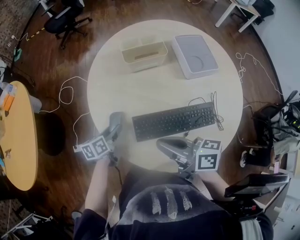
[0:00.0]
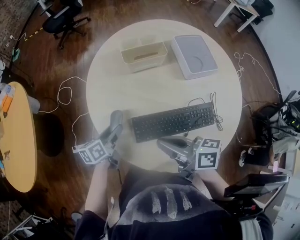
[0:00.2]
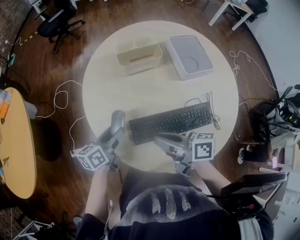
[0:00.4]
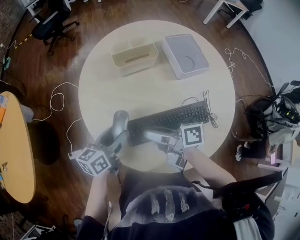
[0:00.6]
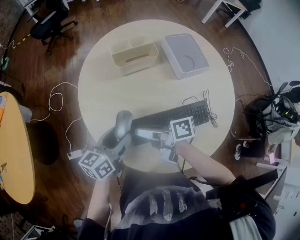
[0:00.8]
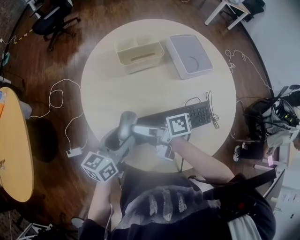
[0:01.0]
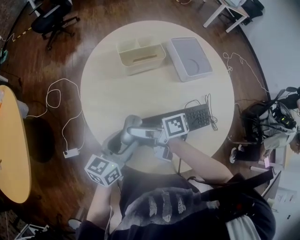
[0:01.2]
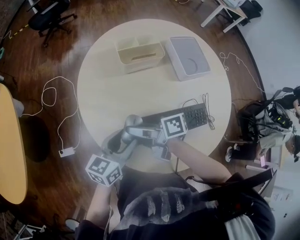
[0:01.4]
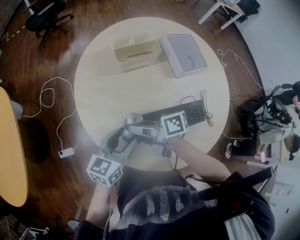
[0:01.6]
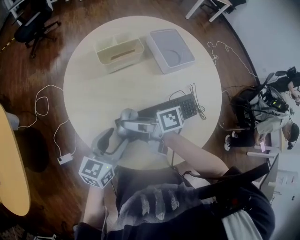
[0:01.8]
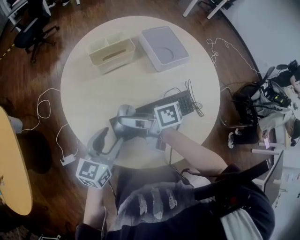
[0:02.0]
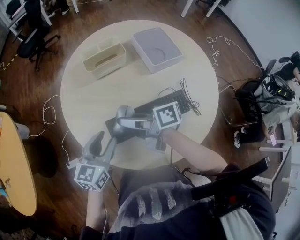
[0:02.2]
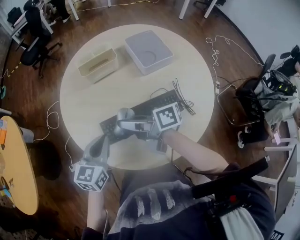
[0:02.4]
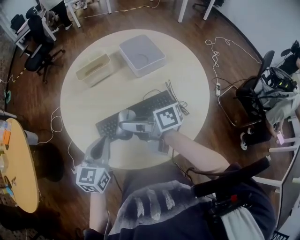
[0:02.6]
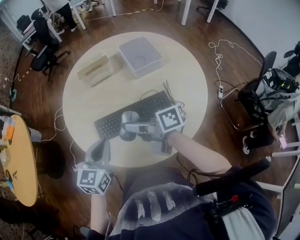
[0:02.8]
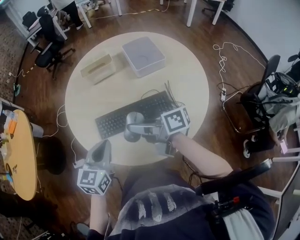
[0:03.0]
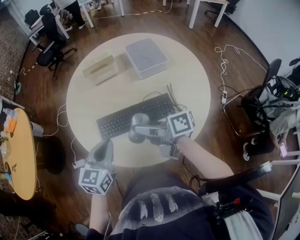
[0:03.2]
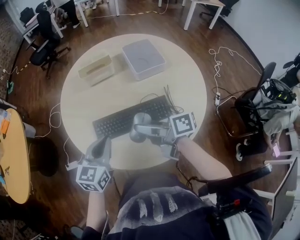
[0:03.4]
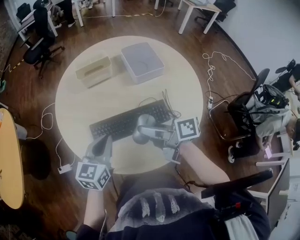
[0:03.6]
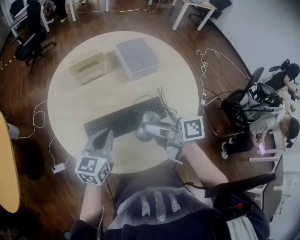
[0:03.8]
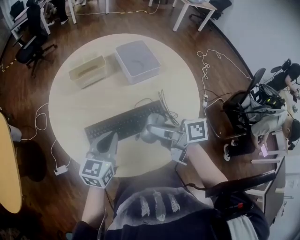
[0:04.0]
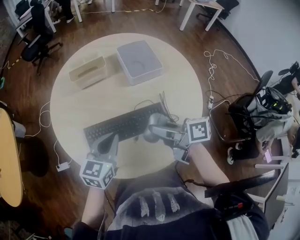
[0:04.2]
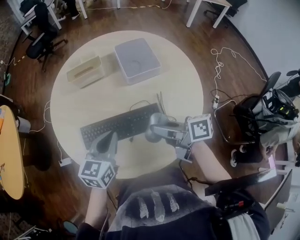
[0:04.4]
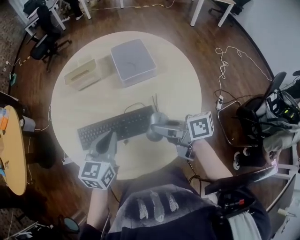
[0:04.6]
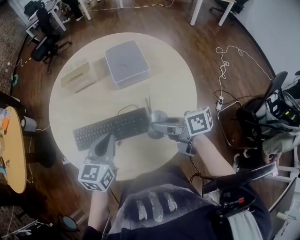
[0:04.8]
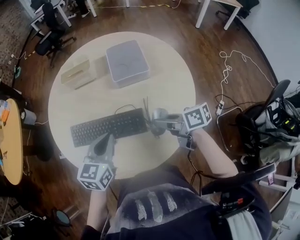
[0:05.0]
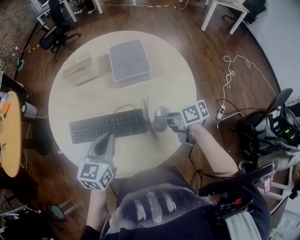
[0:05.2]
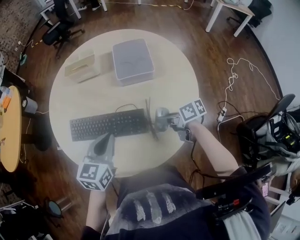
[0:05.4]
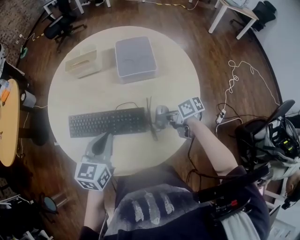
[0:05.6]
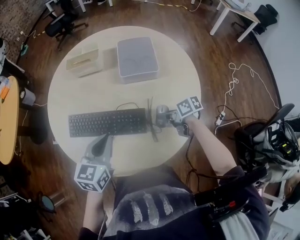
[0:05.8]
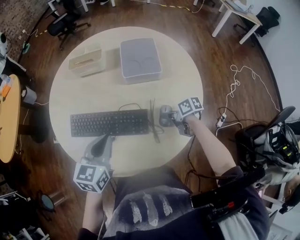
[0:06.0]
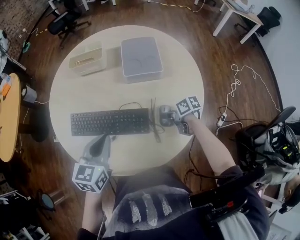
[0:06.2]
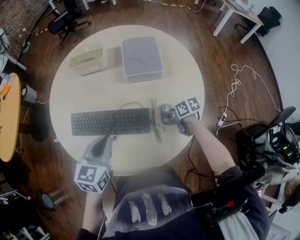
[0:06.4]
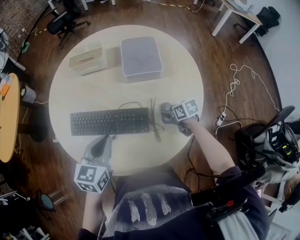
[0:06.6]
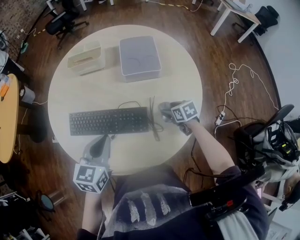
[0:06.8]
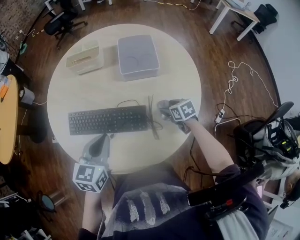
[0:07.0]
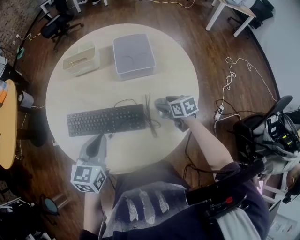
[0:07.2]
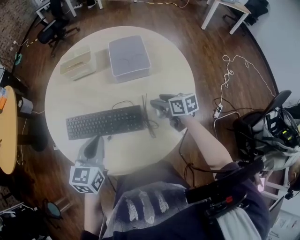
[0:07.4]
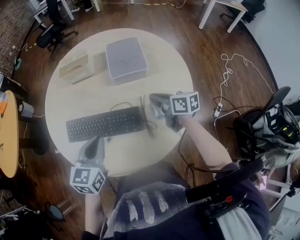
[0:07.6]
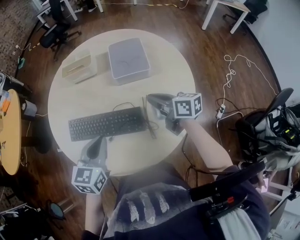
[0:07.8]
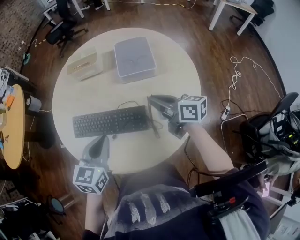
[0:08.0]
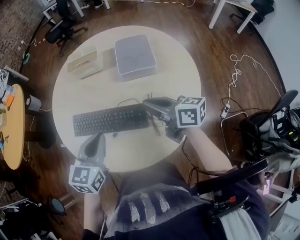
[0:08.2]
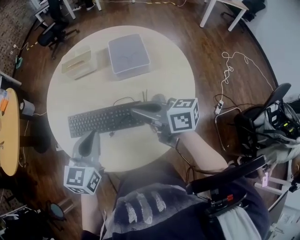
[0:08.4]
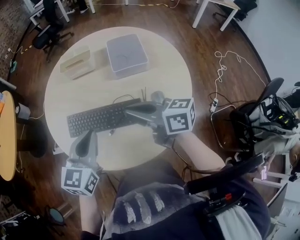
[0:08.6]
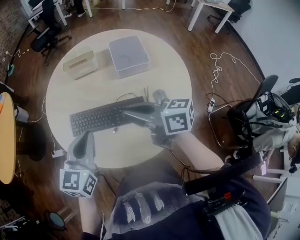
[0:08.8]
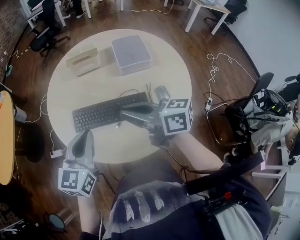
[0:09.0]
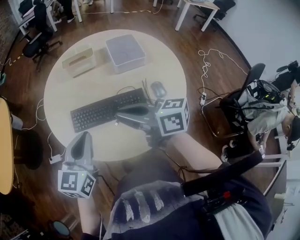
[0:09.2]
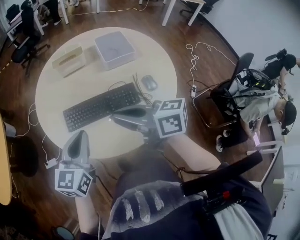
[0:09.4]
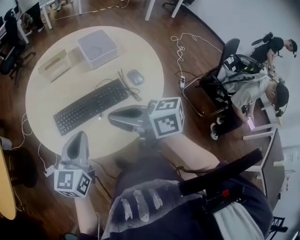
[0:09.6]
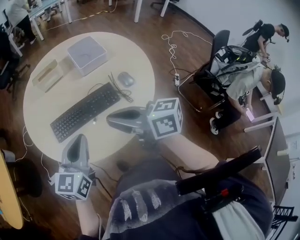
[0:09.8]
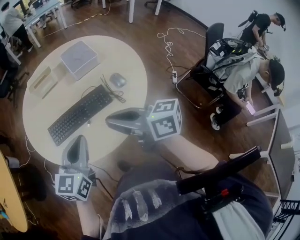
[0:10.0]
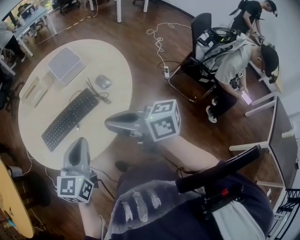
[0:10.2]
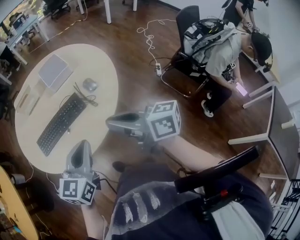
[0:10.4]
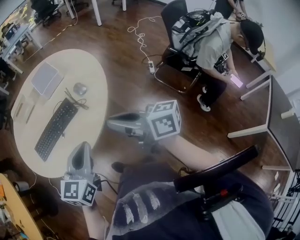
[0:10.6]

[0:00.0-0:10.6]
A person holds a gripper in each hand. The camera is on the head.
0:00.0 to 0:01.6: The right gripper heads forward, downward and to the left, covering some 15 cm, rotates about 20 degrees, and opens up; the left gripper heads upward and to the right, covering about 15 cm, and swivels some 40 degrees.
0:01.6 to 0:03.0: The right gripper goes some 25 cm to the right, backward and upward, while the left gripper goes approximately 15 cm backward, to the right and upward, changes its angle by some 30 degrees, and closes.
0:03.0 to 0:04.6: Both grippers move to the right, some 20 cm.
0:04.6 to 0:06.0: The right gripper is displaced downward and to the right by some 25 cm, and swivels some 30 degrees.
0:06.0 to 0:07.6: The right gripper goes approximately 10 cm upward, swivels approximately 30 degrees, and closes its fingers.
0:07.6 to 0:09.0: The right gripper shifts approximately 30 cm to the left and upward, and rotates roughly 20 degrees. Meanwhile the left gripper is displaced to the left and upward by roughly 15 cm.
0:09.0 to 0:10.6: The left gripper moves roughly 30 cm, and turns by roughly 30 degrees. Meanwhile the right gripper changes place by some 35 cm, and swivels roughly 30 degrees.

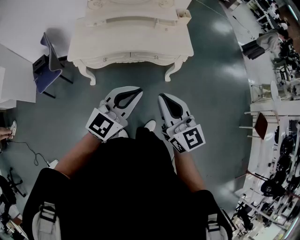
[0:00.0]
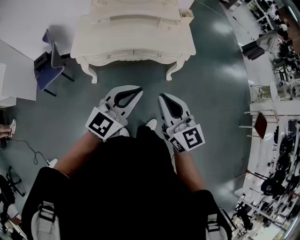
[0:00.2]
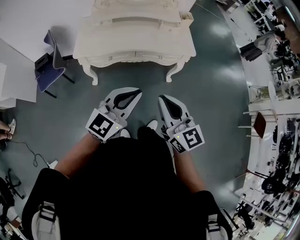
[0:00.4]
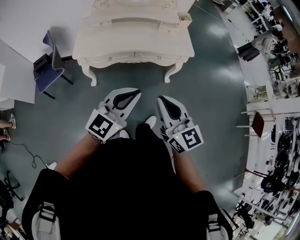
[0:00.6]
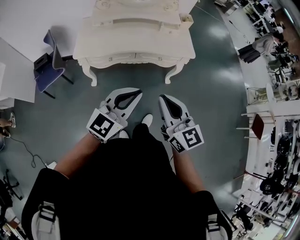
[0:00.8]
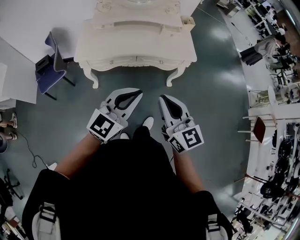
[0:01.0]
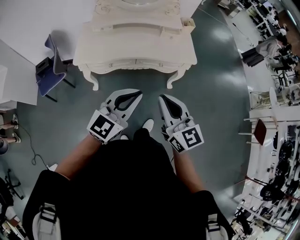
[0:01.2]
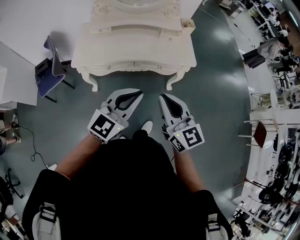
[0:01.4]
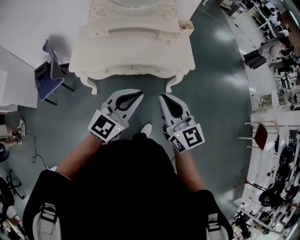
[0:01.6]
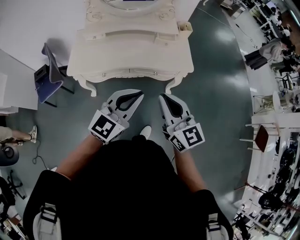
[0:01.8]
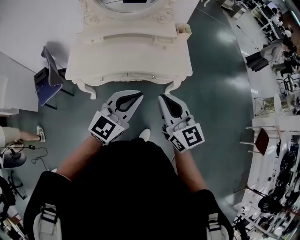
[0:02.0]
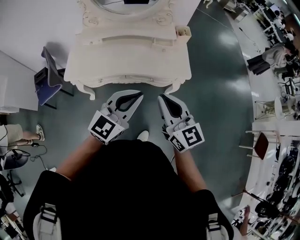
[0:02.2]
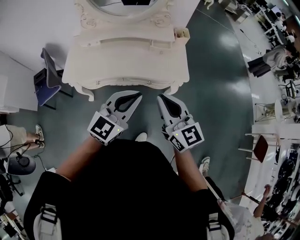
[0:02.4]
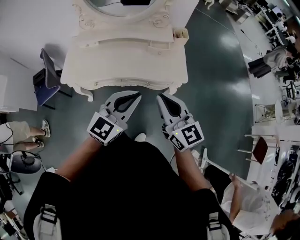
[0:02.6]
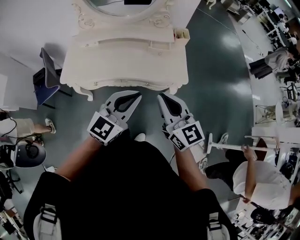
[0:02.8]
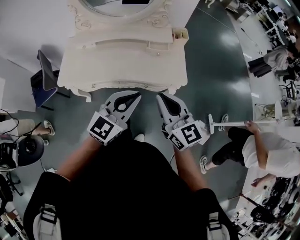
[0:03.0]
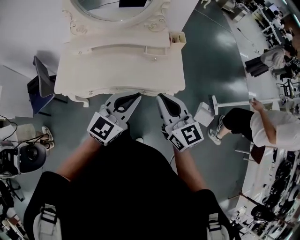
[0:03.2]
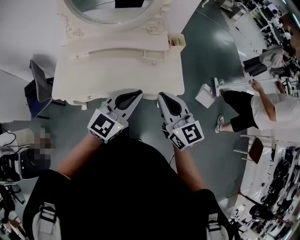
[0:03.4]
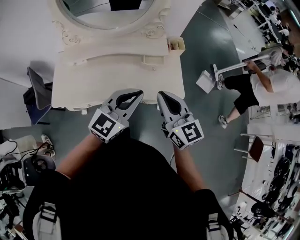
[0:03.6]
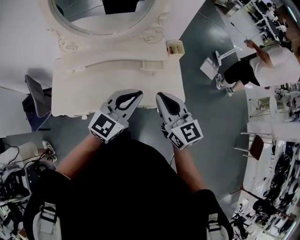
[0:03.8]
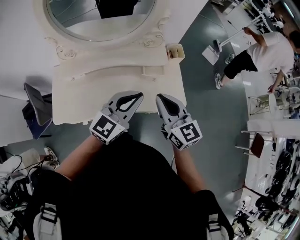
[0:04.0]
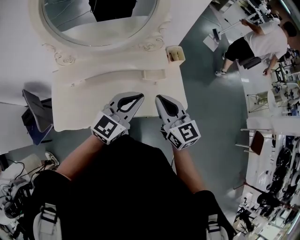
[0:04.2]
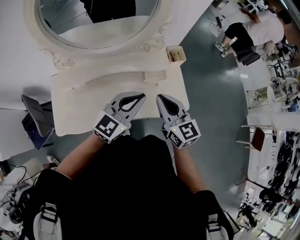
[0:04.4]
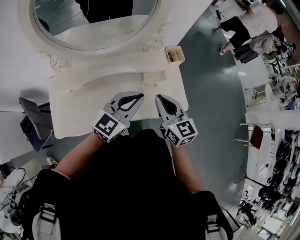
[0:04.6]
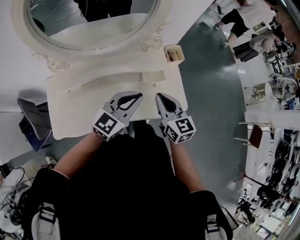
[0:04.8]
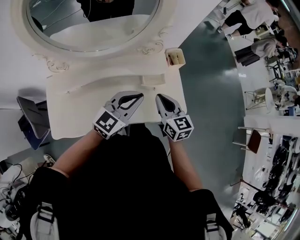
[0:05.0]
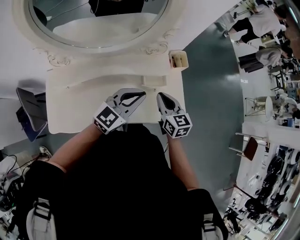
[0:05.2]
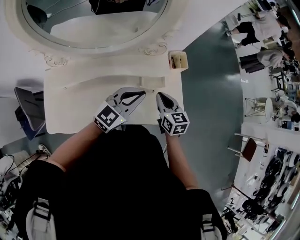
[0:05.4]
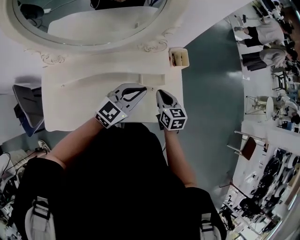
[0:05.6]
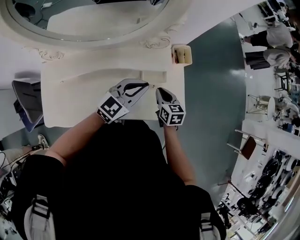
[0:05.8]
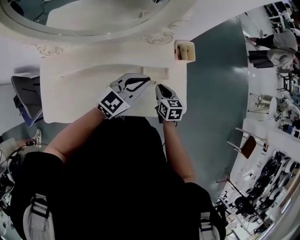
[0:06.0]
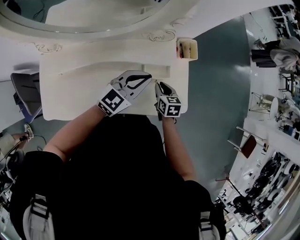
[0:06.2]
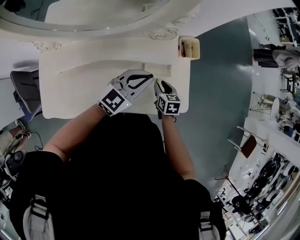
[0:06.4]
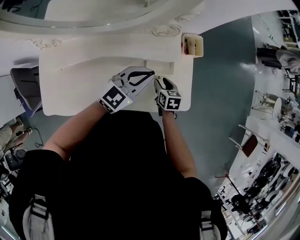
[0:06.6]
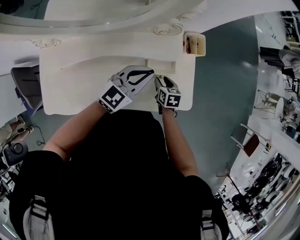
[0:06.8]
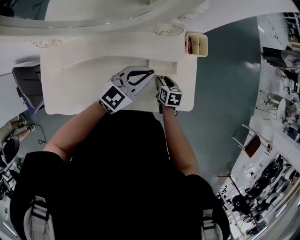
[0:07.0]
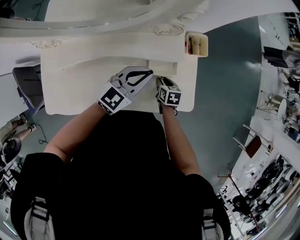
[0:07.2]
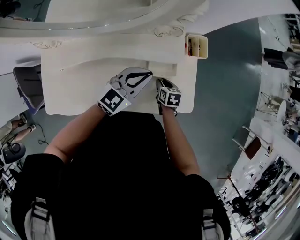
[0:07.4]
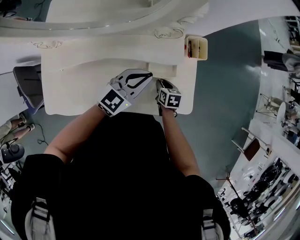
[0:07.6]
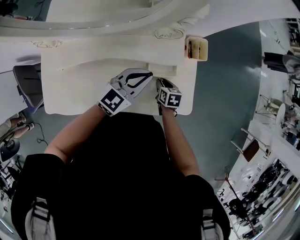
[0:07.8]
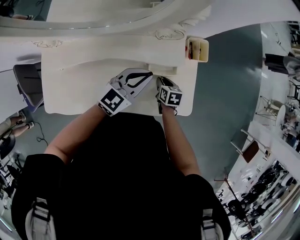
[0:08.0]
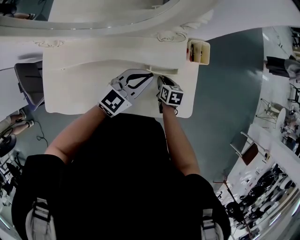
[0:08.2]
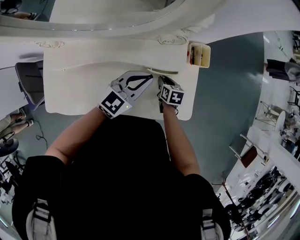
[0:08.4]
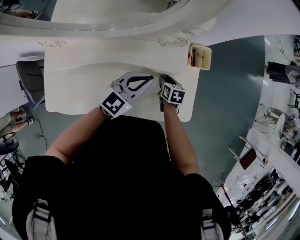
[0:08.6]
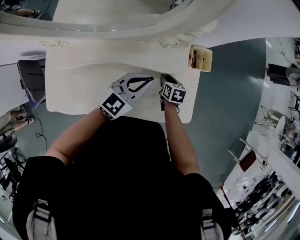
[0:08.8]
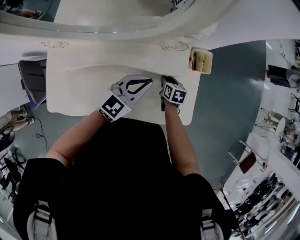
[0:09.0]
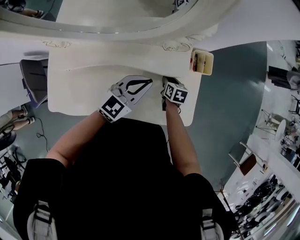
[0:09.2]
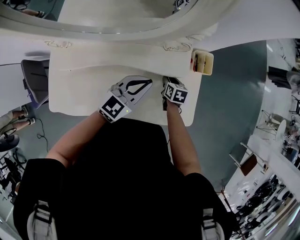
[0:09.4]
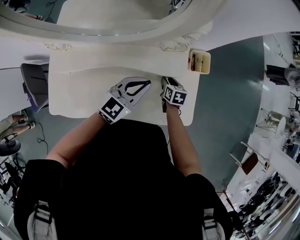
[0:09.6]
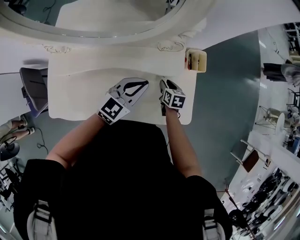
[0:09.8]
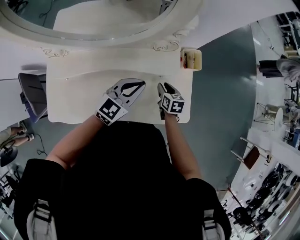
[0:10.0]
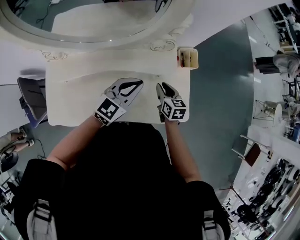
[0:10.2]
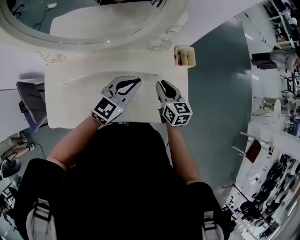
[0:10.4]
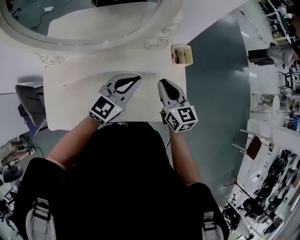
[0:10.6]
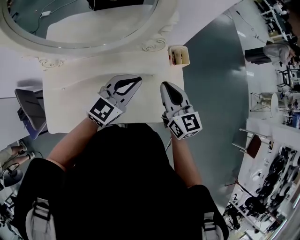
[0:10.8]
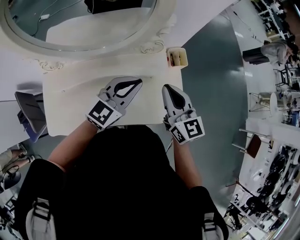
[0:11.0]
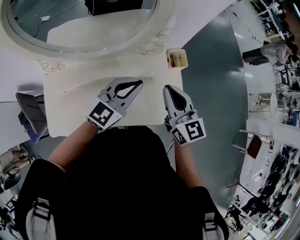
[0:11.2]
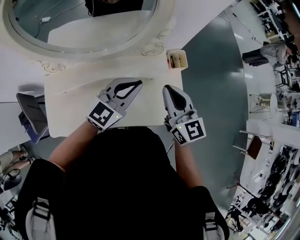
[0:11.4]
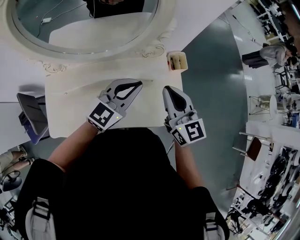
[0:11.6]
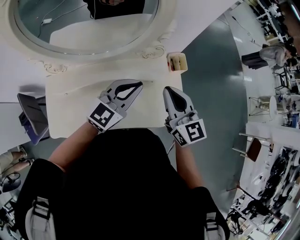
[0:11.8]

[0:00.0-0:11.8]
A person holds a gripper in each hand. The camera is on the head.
0:00.0 to 0:01.4: The right gripper changes place by roughly 5 cm.
0:01.4 to 0:03.0: The grippers both shift forward and to the right by some 20 cm.
0:03.0 to 0:04.4: The two grippers go approximately 25 cm forward.
0:04.4 to 0:06.0: The right gripper goes some 30 cm downward and forward, and points its fingers roughly 30 degrees further downward, while the left gripper is displaced forward and downward by approximately 20 cm.
0:06.0 to 0:07.4: The right gripper shifts approximately 10 cm downward.
0:07.4 to 0:08.8: The right gripper moves forward, some 5 cm.
0:08.8 to 0:10.4: The left gripper goes approximately 5 cm upward; the right gripper is displaced upward by roughly 20 cm, and swivels about 30 degrees.
0:10.4 to 0:11.8: The right gripper is displaced upward by some 20 cm, swivels approximately 30 degrees, and closes up. Meanwhile the left gripper shifts approximately 10 cm upward.

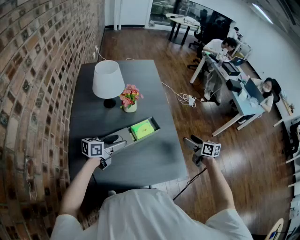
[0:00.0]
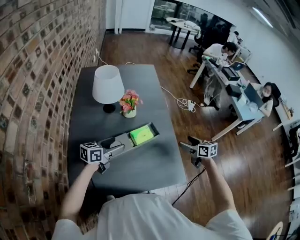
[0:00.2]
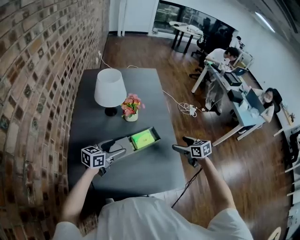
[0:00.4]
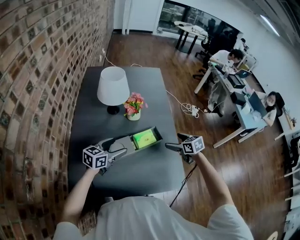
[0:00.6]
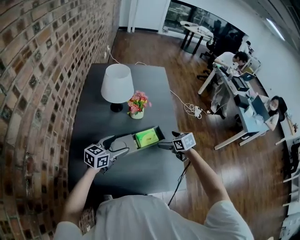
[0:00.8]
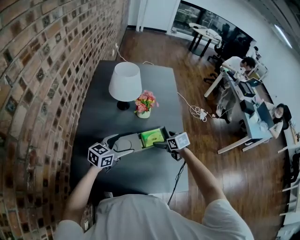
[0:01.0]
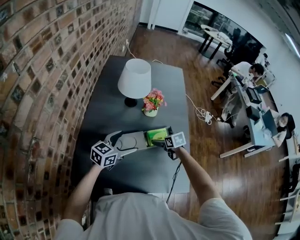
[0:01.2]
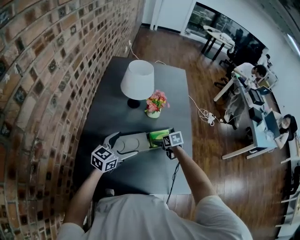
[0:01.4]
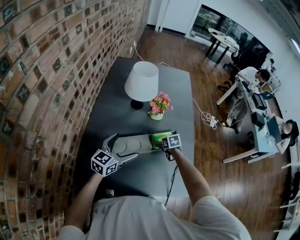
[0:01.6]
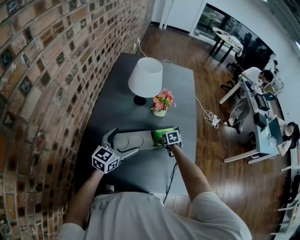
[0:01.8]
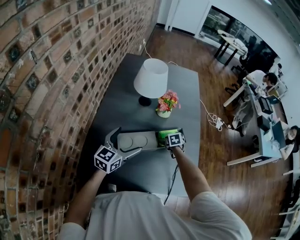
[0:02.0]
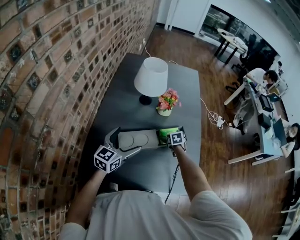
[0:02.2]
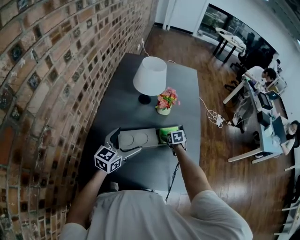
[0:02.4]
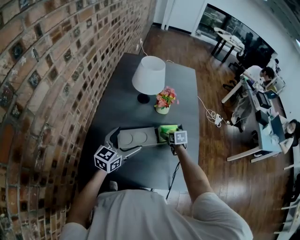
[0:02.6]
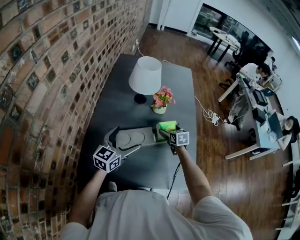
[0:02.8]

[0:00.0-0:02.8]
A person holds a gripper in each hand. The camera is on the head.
0:00.0 to 0:01.4: The left gripper moves to the left, roughly 5 cm, and turns by about 30 degrees; the right gripper travels to the left, downward and forward by approximately 30 cm, and tilts its fingers approximately 30 degrees downward.
0:01.4 to 0:02.8: The right gripper is displaced upward by about 5 cm. The left gripper shifts by some 5 cm.
